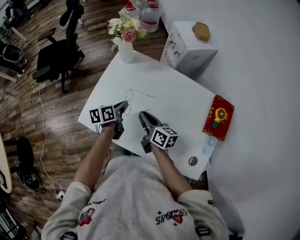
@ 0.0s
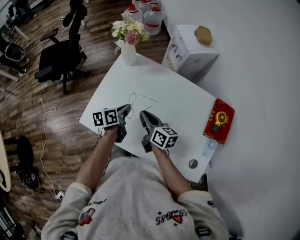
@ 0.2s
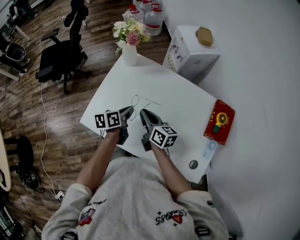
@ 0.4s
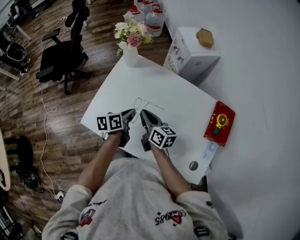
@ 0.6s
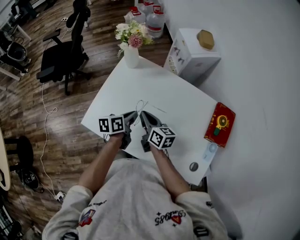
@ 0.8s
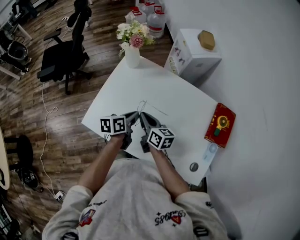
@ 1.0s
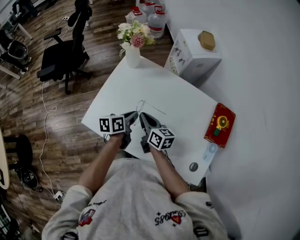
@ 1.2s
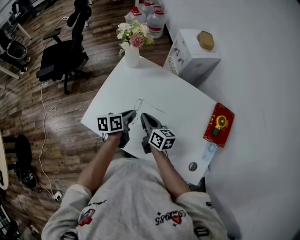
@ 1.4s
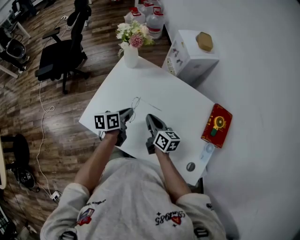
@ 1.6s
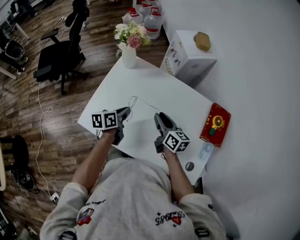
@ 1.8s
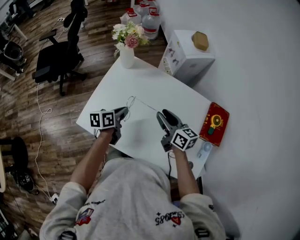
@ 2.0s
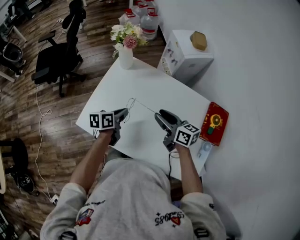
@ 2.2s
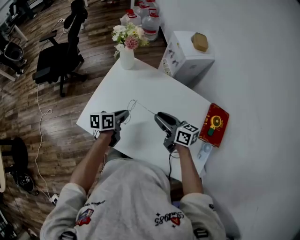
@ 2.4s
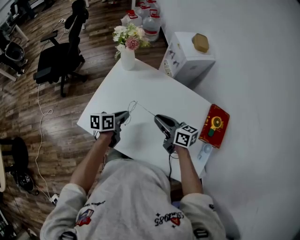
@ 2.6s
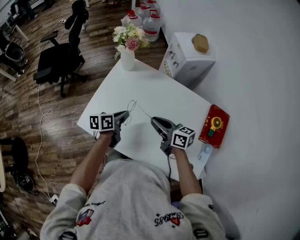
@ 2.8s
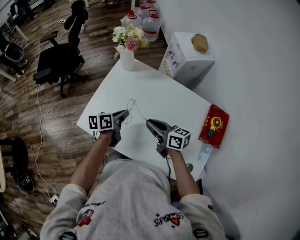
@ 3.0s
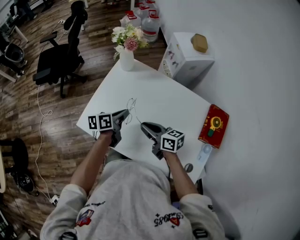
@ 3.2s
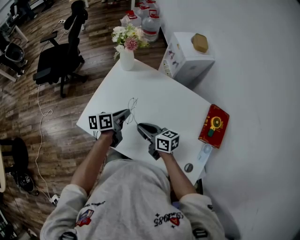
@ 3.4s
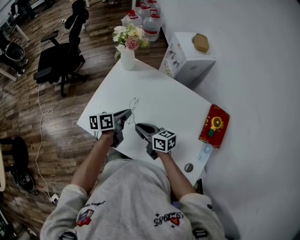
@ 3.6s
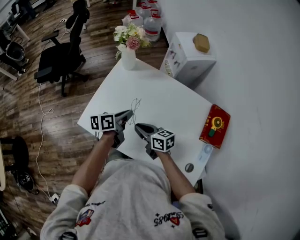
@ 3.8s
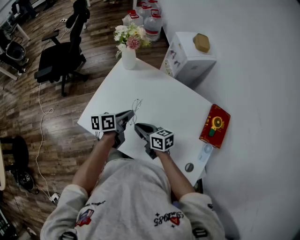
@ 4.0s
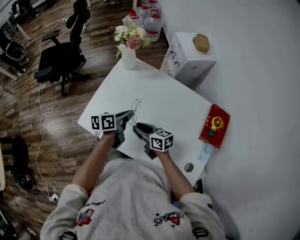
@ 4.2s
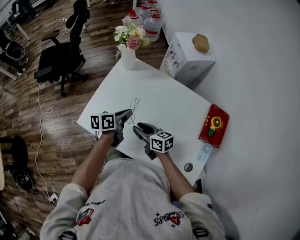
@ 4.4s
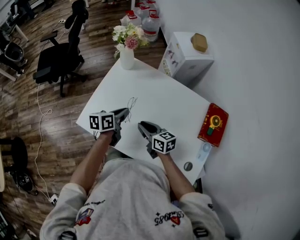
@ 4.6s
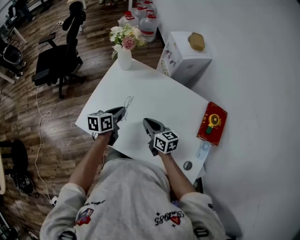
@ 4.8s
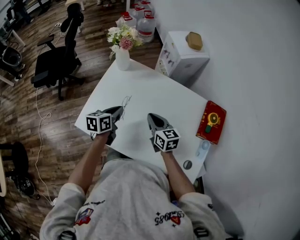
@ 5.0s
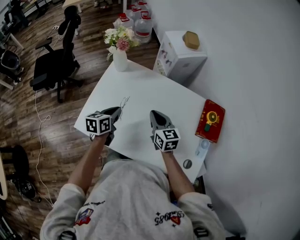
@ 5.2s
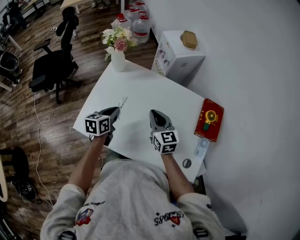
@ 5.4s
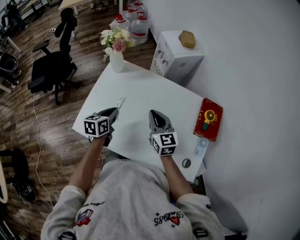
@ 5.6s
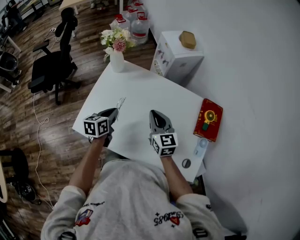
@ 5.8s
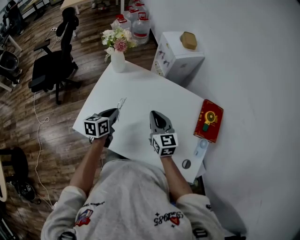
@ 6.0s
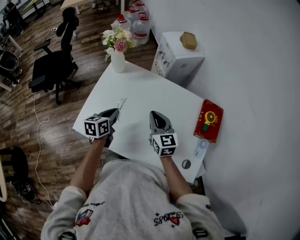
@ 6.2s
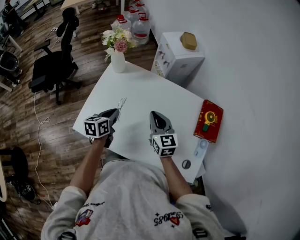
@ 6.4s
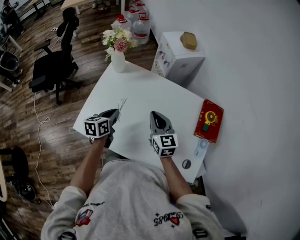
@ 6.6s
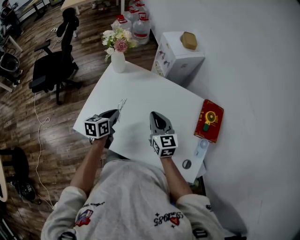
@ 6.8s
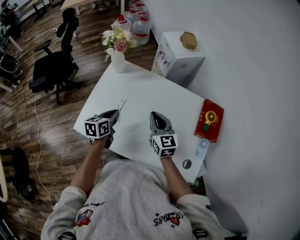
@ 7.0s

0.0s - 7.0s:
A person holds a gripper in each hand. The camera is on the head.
0.0s - 1.4s: The grippers make only small movements.
1.4s - 2.8s: The right gripper goes some 5 cm to the right, and opens, then closes once more.
2.8s - 4.2s: The right gripper shifts about 10 cm to the left and downward.
4.2s - 5.6s: The left gripper rotates approximately 30 degrees. Meanwhile the right gripper moves to the right, upward and forward, approximately 15 cm, and rotates some 50 degrees.
5.6s - 7.0s: Both grippers stay about where they are.

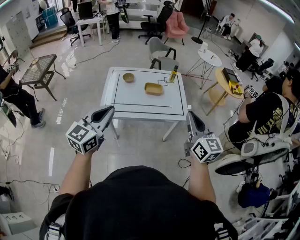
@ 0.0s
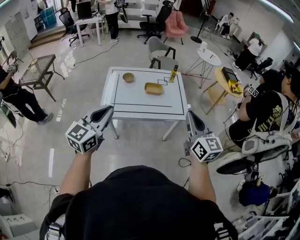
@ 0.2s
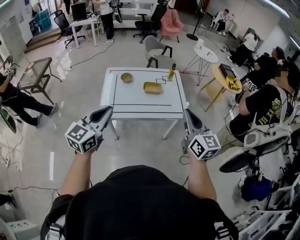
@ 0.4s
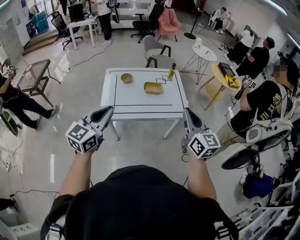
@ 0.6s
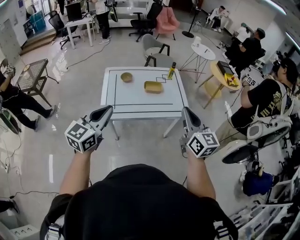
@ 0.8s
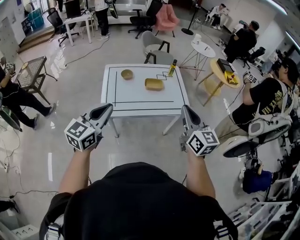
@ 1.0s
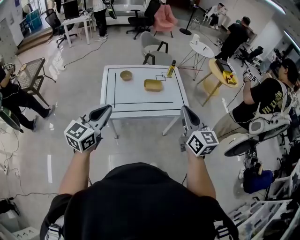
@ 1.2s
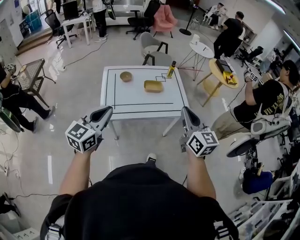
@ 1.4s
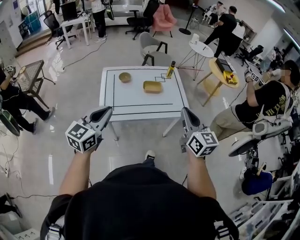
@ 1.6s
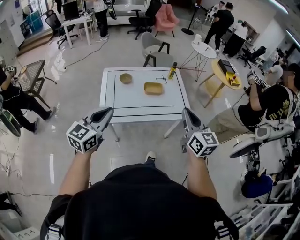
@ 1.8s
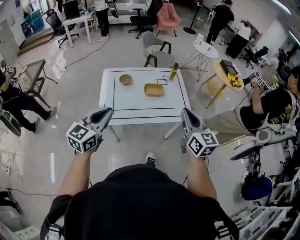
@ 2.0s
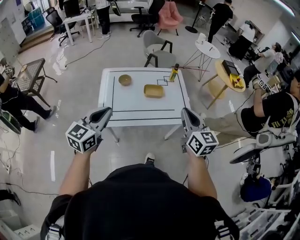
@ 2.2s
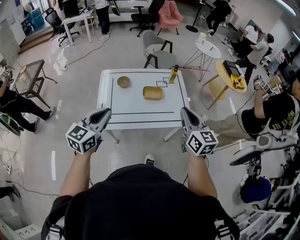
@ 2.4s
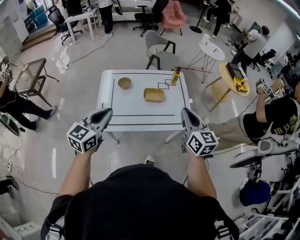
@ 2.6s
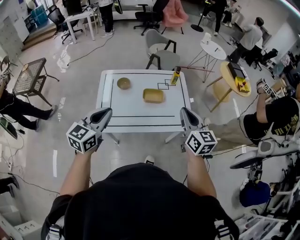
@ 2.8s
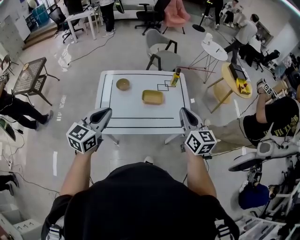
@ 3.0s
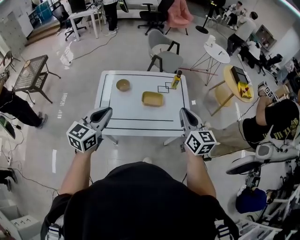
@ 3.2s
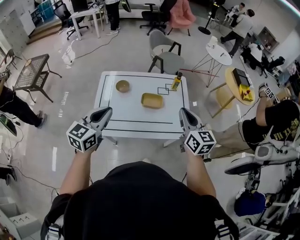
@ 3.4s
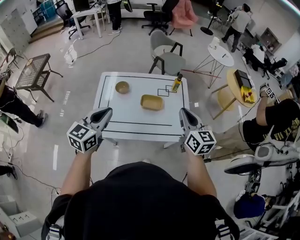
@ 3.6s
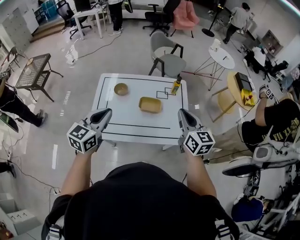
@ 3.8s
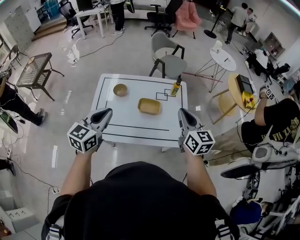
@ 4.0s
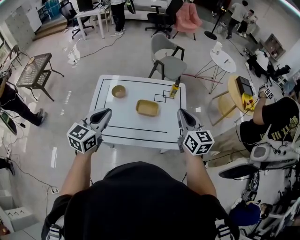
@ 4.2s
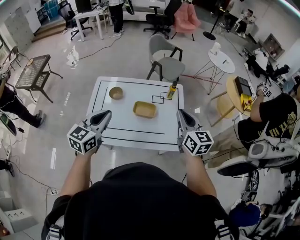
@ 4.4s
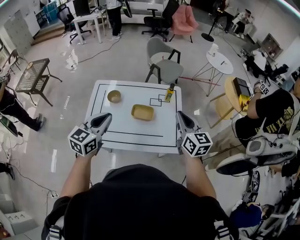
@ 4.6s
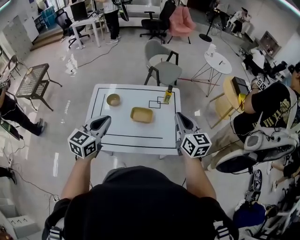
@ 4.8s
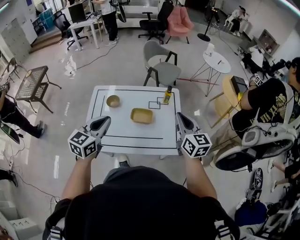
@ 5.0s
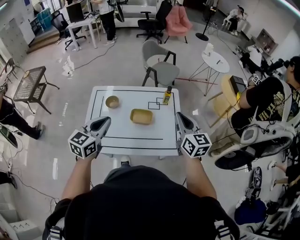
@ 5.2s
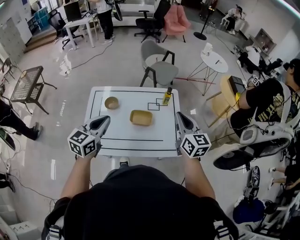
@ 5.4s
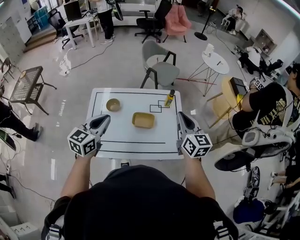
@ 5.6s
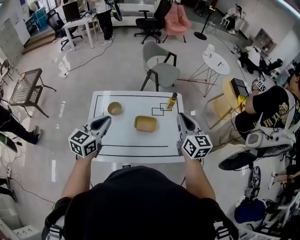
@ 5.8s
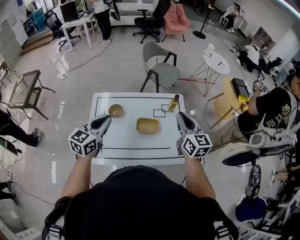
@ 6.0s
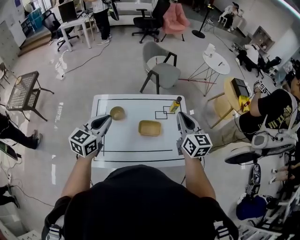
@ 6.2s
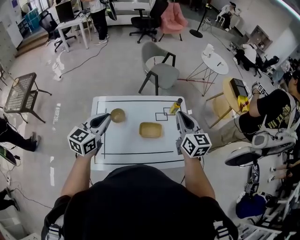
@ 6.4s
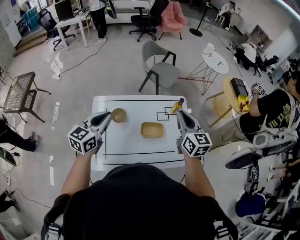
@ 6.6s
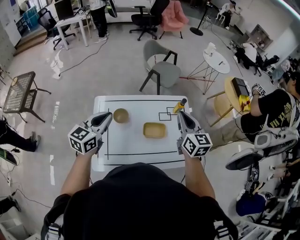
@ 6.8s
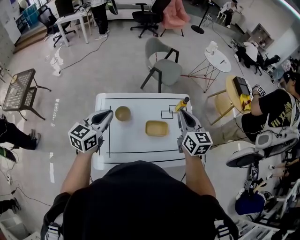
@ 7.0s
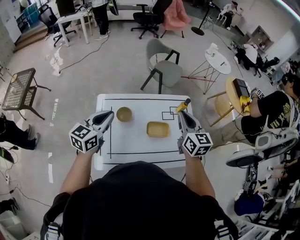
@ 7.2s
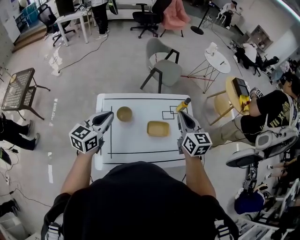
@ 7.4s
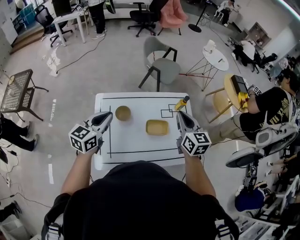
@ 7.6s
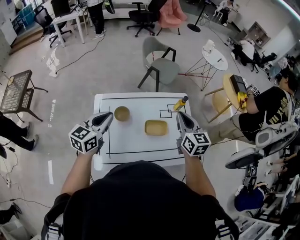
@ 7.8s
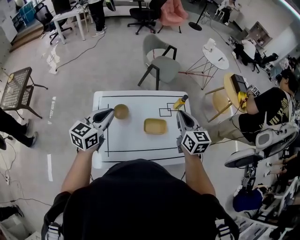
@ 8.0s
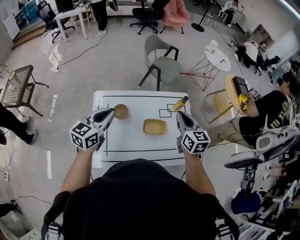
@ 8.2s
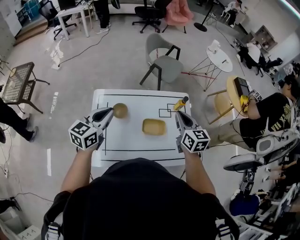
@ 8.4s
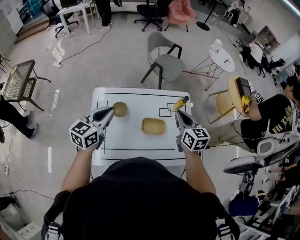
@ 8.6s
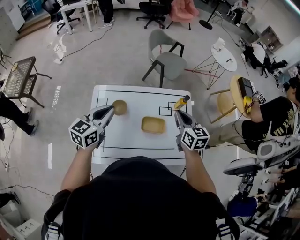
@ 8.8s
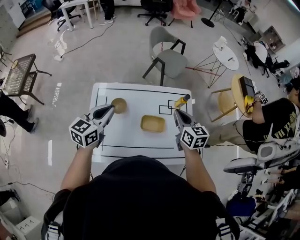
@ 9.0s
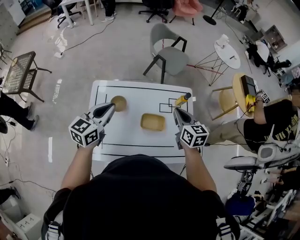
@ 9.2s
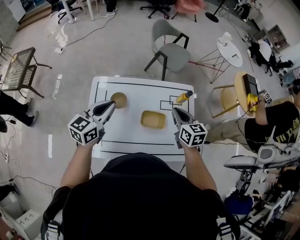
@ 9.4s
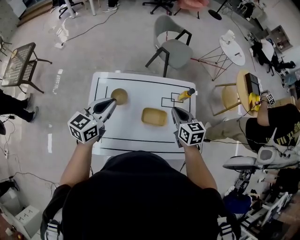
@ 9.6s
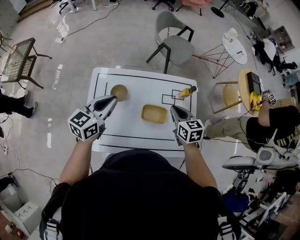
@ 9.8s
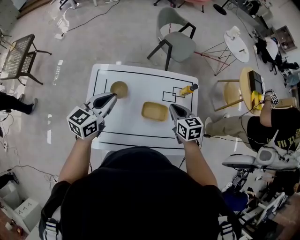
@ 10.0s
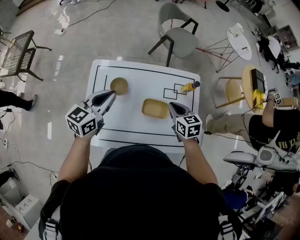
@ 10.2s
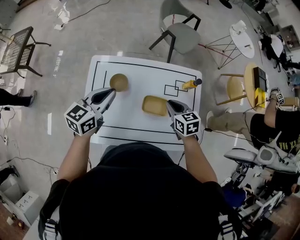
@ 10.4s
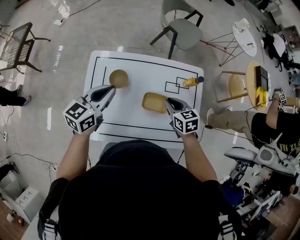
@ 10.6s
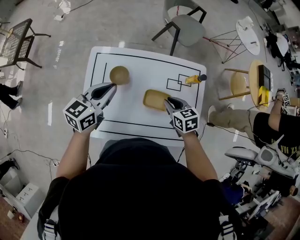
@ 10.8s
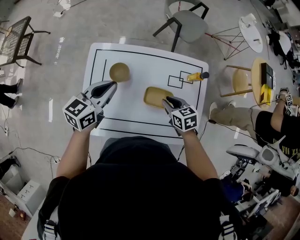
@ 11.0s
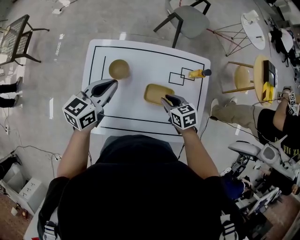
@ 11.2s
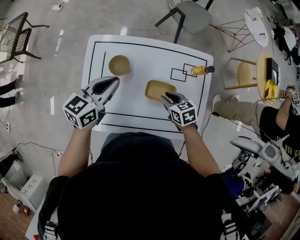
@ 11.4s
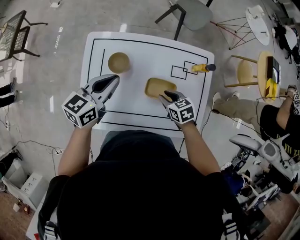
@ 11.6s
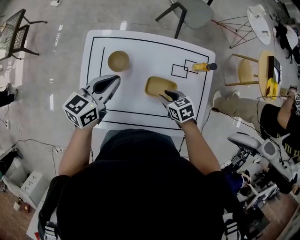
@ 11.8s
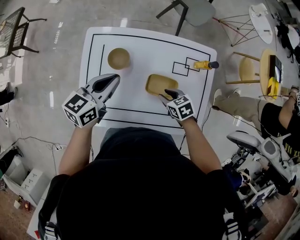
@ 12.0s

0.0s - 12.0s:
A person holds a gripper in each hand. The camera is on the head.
0.0s - 1.6s: The right gripper is displaced to the left by about 10 cm. The left gripper is displaced to the left and forward by approximately 10 cm.
1.6s - 3.0s: The grippers both shift forward by approximately 20 cm.
3.0s - 4.4s: The grippers both shift forward and to the right by roughly 15 cm.
4.4s - 6.0s: The two grippers go roughly 10 cm forward and to the left.
6.0s - 7.6s: The left gripper moves to the left and forward, roughly 10 cm. The right gripper shifts some 10 cm to the left.
7.6s - 9.0s: The right gripper travels downward by some 10 cm, while the left gripper shifts about 5 cm to the right.
9.0s - 10.4s: The right gripper is displaced downward by roughly 10 cm, and swivels approximately 20 degrees. The left gripper shifts by some 5 cm.
10.4s - 12.0s: The left gripper travels downward by approximately 5 cm; the right gripper goes roughly 15 cm downward, turns by some 20 degrees, and opens up.

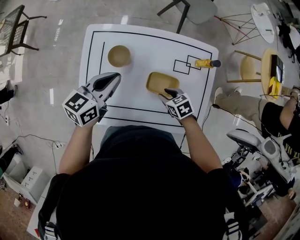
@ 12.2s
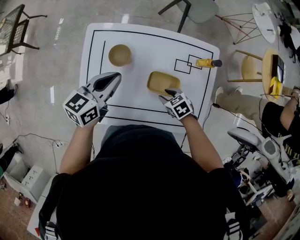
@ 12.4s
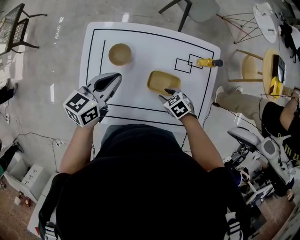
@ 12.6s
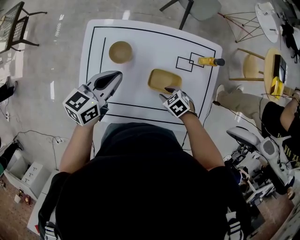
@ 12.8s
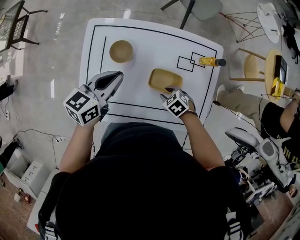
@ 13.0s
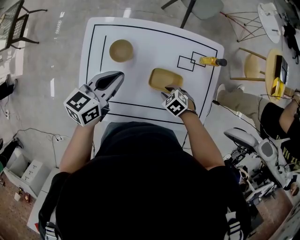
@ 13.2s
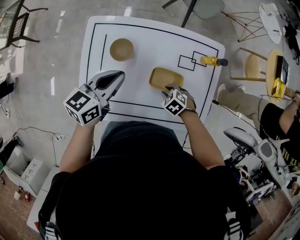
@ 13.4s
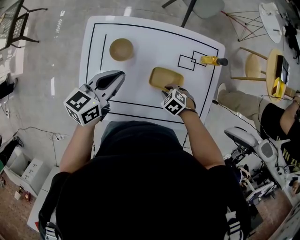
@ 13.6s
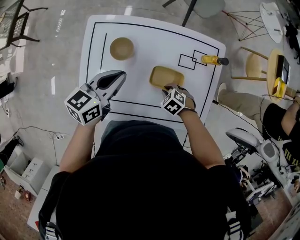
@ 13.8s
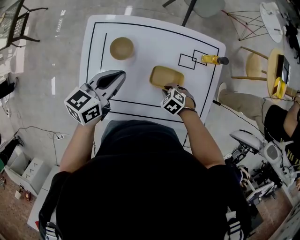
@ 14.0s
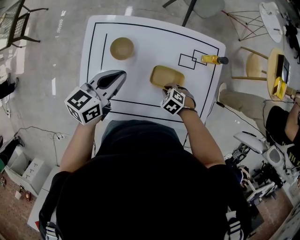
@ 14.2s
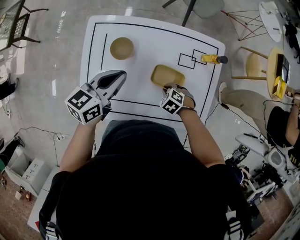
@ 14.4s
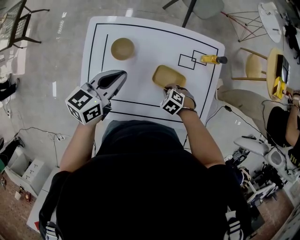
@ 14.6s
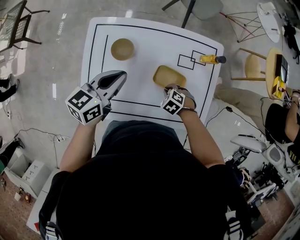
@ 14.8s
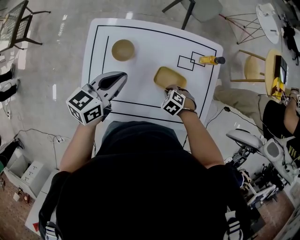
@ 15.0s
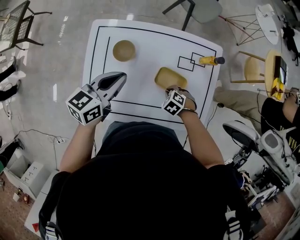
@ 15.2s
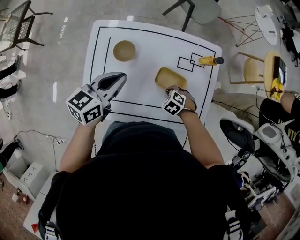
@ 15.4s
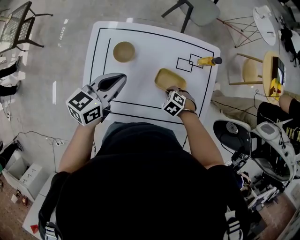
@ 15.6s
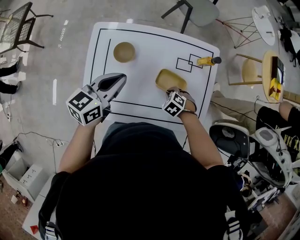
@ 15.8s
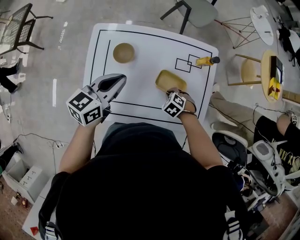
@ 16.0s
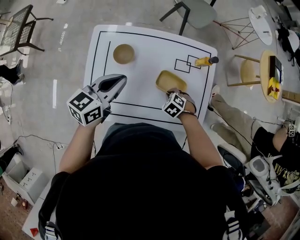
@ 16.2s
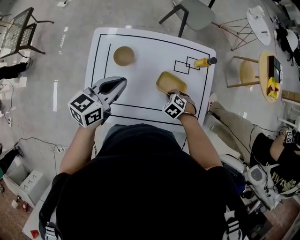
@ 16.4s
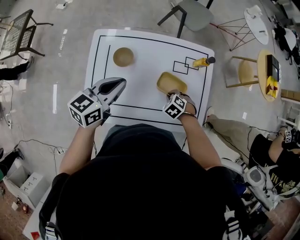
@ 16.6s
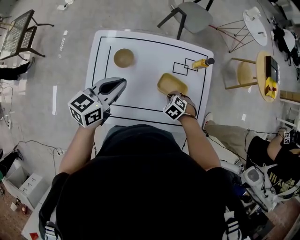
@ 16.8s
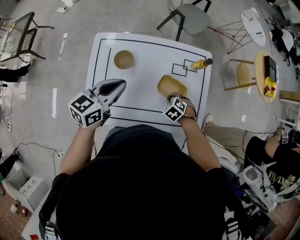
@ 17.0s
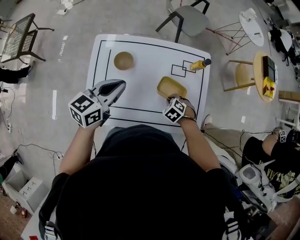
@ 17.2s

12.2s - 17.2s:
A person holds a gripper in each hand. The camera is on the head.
12.2s - 13.8s: The right gripper heads downward, covering about 5 cm, turns by roughly 30 degrees, and closes up.
13.8s - 15.6s: There are only small adjustments of the grippers.
15.6s - 17.2s: The grippers stay close to where they were, moving slightly.
